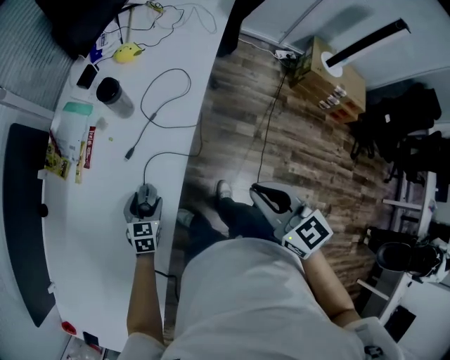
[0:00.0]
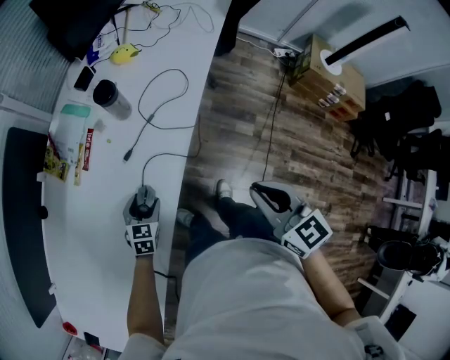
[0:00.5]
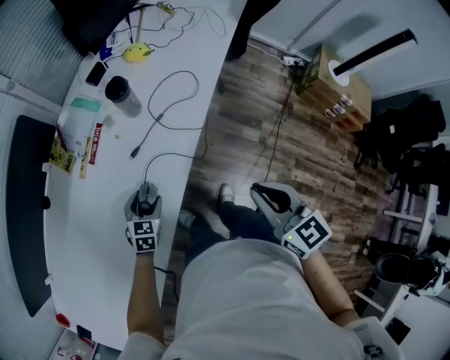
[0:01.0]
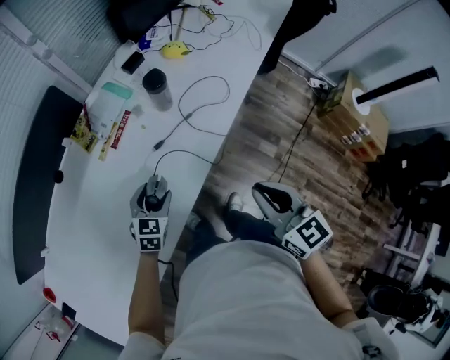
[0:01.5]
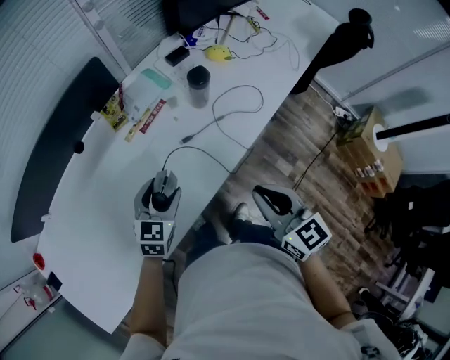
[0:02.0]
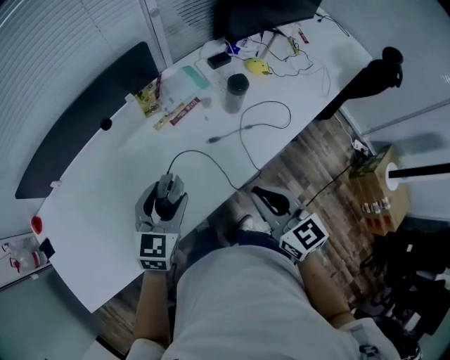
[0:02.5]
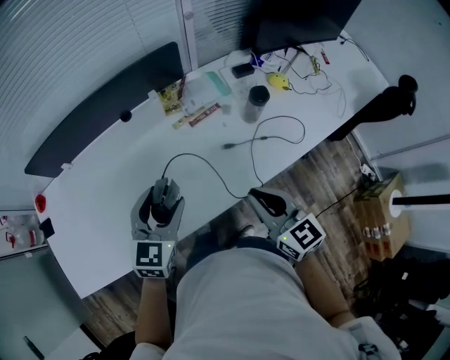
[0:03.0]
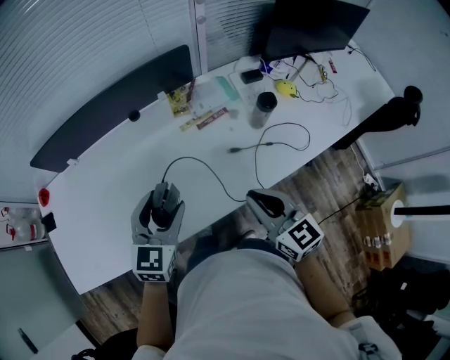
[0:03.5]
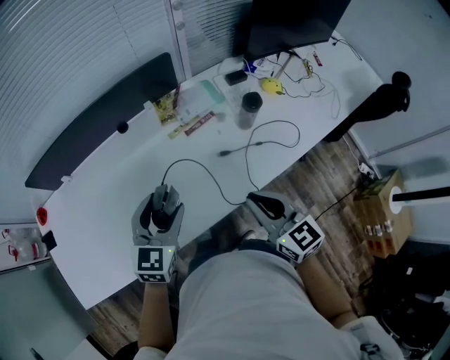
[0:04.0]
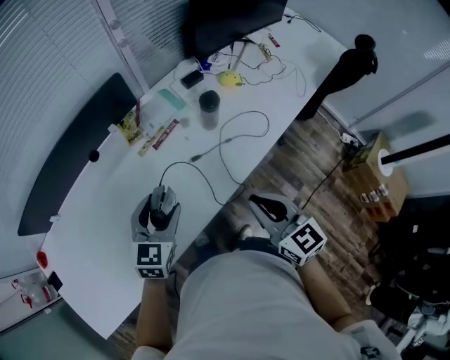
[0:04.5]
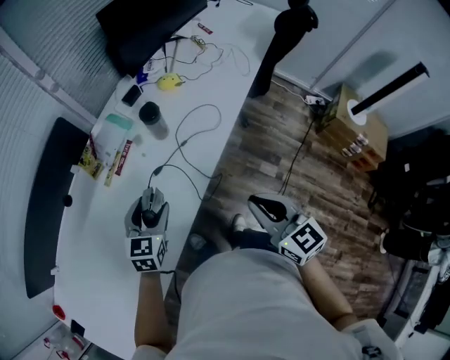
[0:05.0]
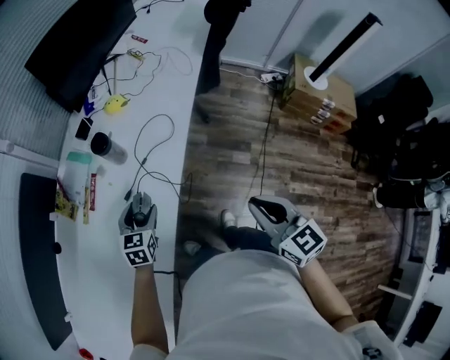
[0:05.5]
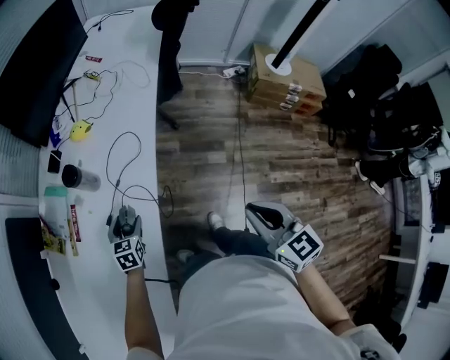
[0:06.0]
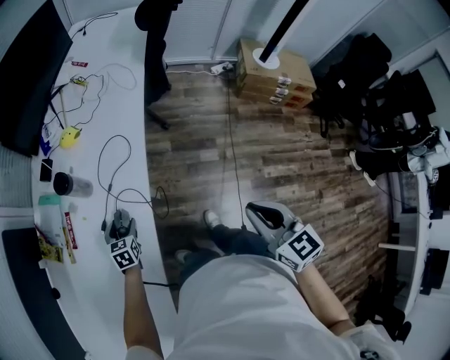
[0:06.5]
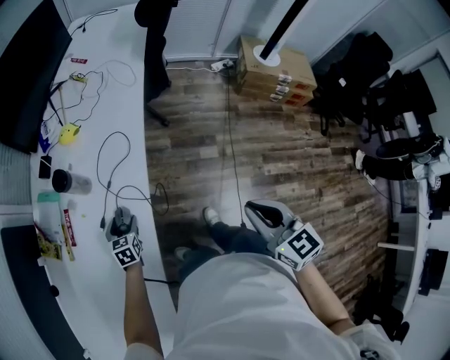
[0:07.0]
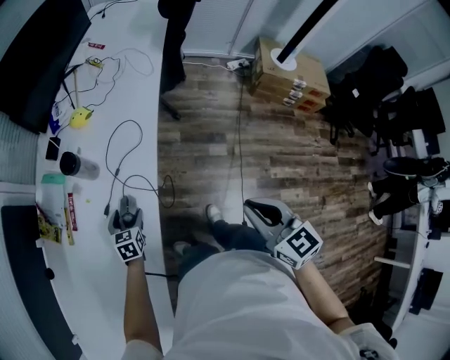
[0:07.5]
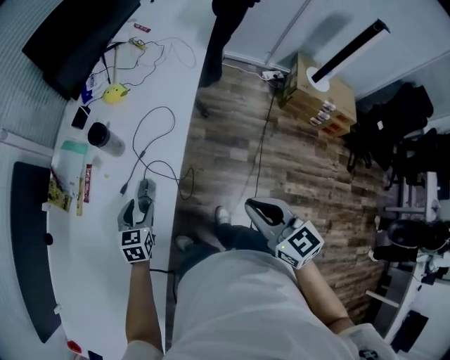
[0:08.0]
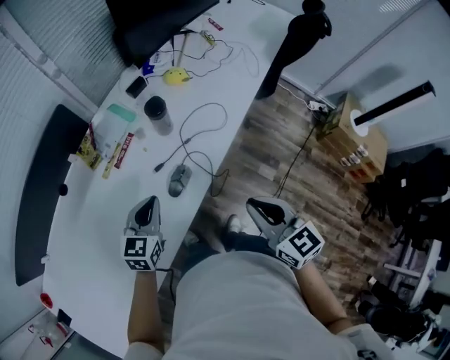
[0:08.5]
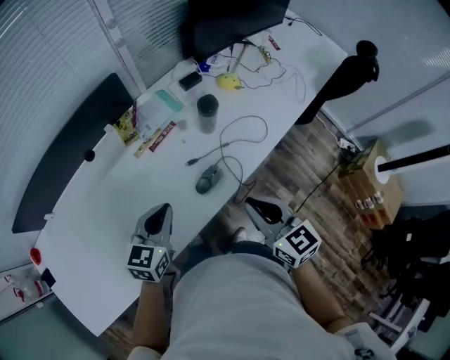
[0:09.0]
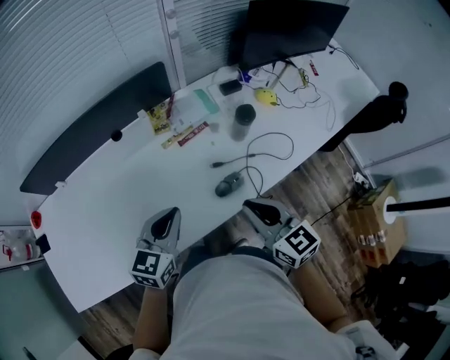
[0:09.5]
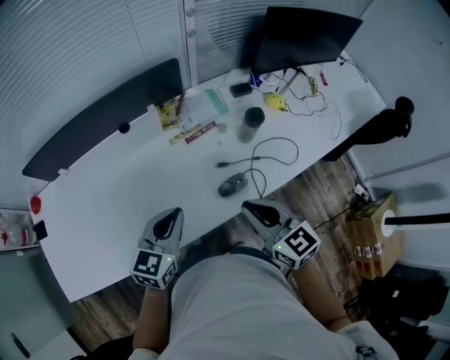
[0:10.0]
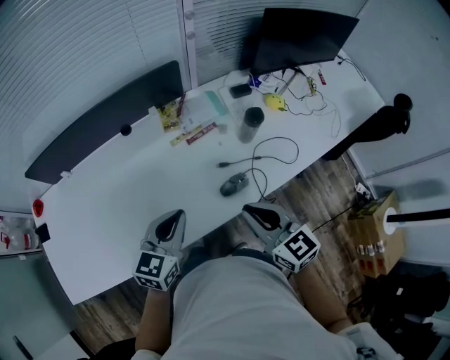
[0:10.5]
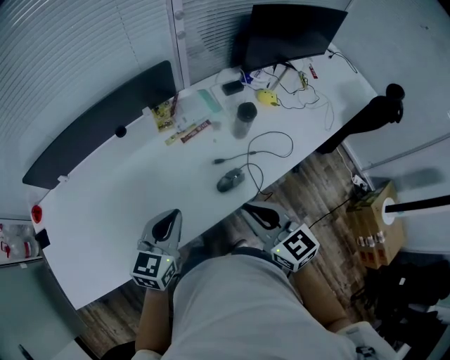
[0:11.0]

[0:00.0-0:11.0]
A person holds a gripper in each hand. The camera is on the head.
0:00.0 to 0:02.0: The right gripper heads to the left and forward, covering roughly 10 cm, and turns by roughly 20 degrees; the left gripper moves upward, approximately 15 cm, and swivels some 20 degrees.
0:02.0 to 0:03.5: The left gripper is displaced upward and to the left by some 15 cm, and changes its angle by some 30 degrees. The right gripper is displaced to the left and forward by approximately 10 cm, and swivels some 20 degrees.
0:03.5 to 0:05.5: The left gripper moves some 30 cm, and swivels about 40 degrees, while the right gripper shifts by roughly 25 cm, and swivels approximately 50 degrees.
0:05.5 to 0:07.5: The left gripper travels downward by some 10 cm.
0:07.5 to 0:09.0: The right gripper moves roughly 25 cm, and swivels some 40 degrees. Meanwhile the left gripper shifts roughly 20 cm upward, turns by some 30 degrees, and closes.
0:09.0 to 0:11.0: The two grippers go about 5 cm to the left.

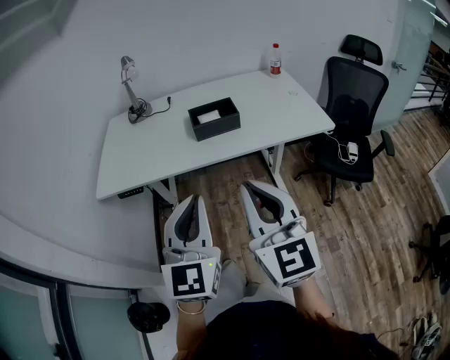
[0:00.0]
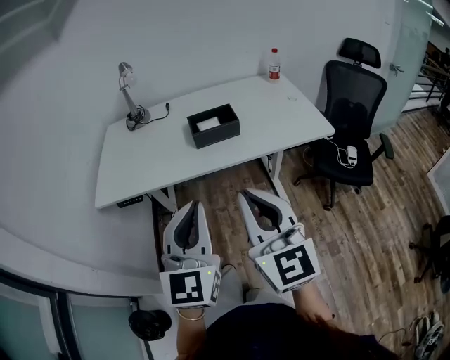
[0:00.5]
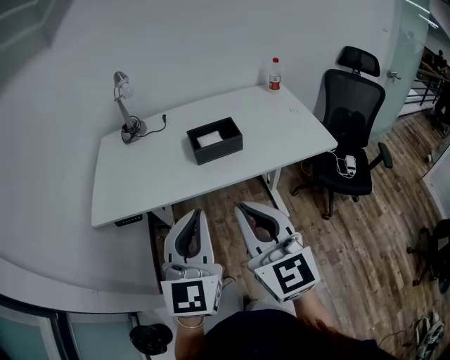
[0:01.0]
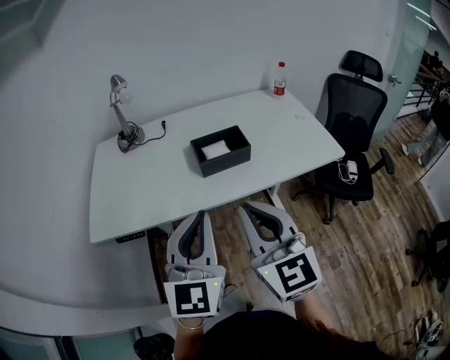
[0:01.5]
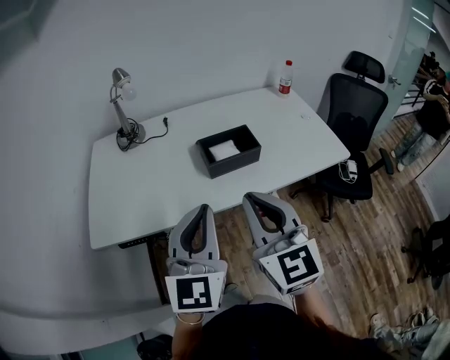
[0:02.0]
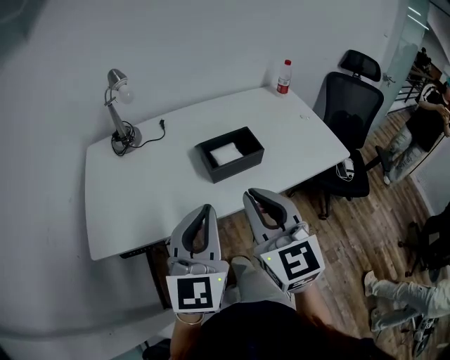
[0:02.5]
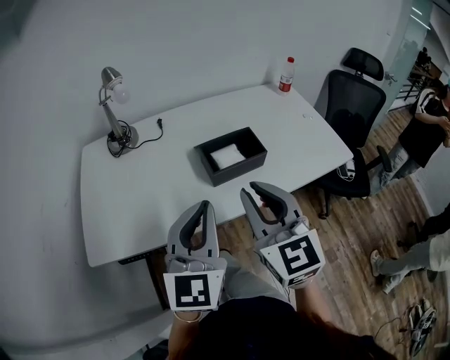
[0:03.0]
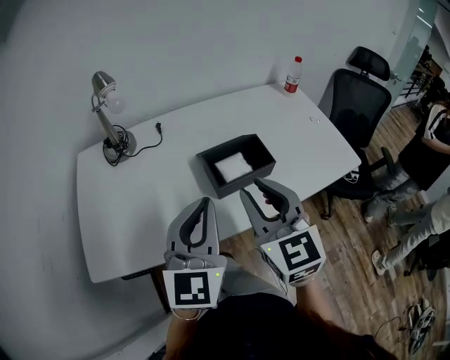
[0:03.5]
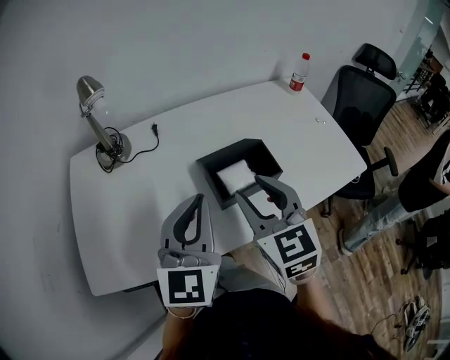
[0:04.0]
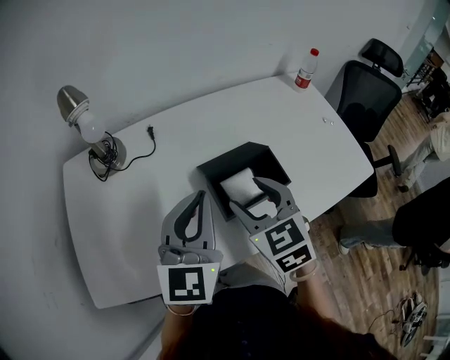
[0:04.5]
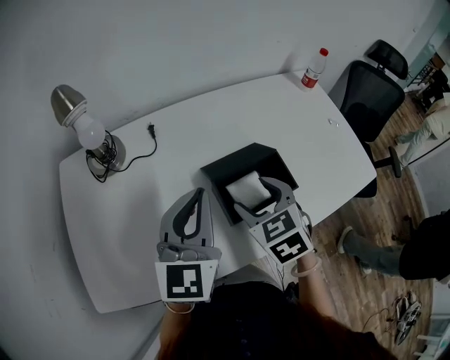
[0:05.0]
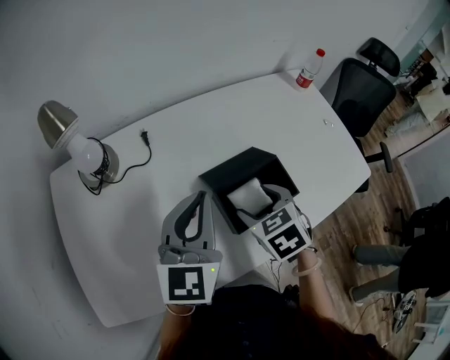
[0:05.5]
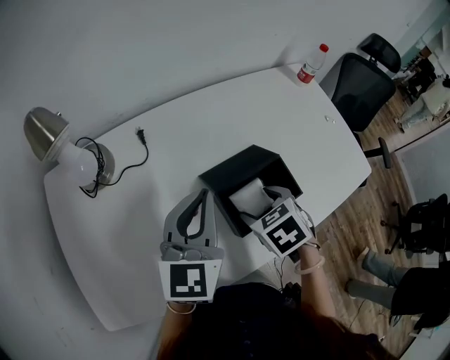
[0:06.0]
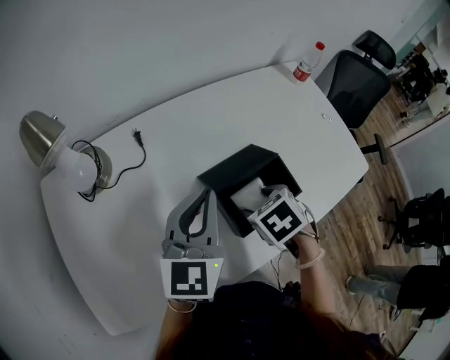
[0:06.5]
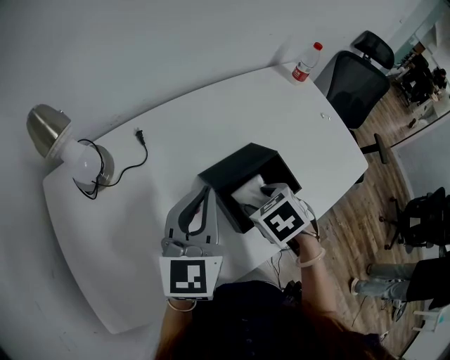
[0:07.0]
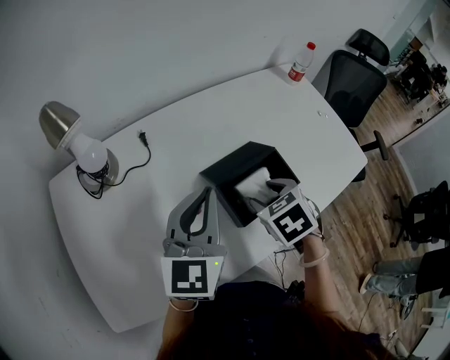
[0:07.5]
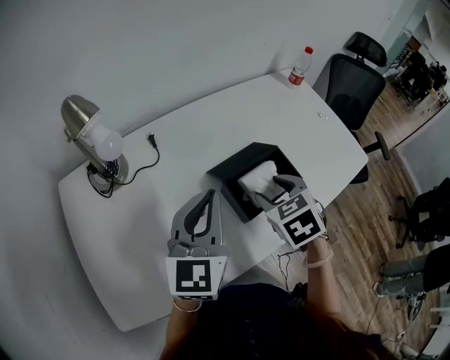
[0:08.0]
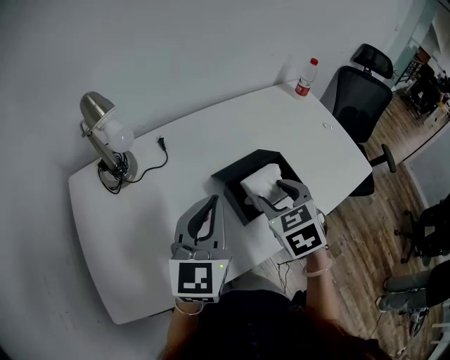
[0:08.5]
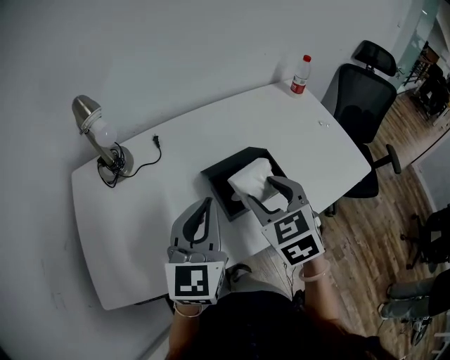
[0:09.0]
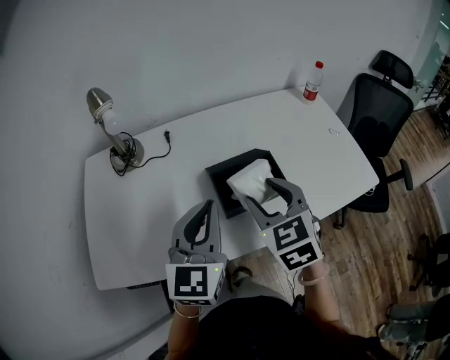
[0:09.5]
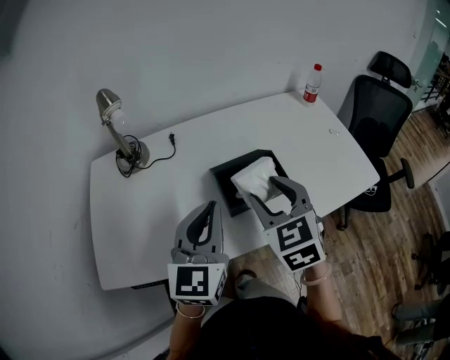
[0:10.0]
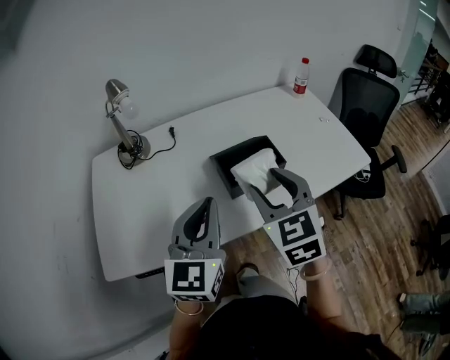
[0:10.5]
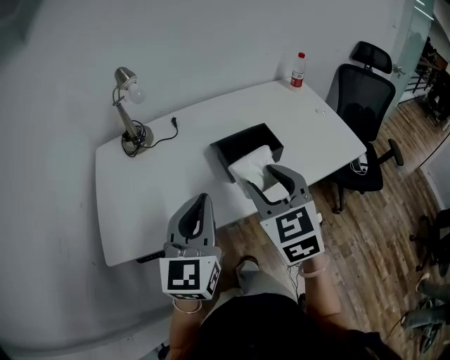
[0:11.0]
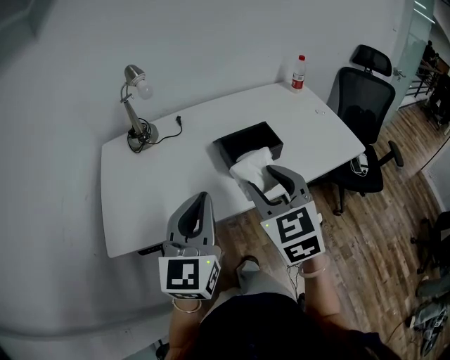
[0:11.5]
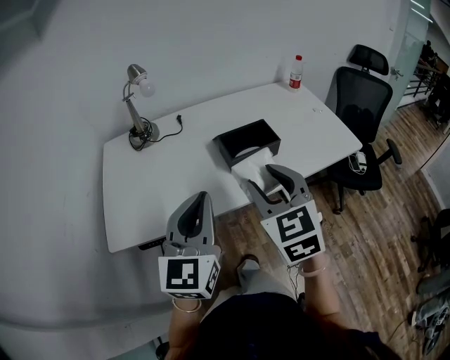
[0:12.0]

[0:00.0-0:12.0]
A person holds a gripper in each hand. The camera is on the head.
0:00.0 to 0:02.0: The left gripper is displaced forward by some 20 cm. The right gripper moves forward and to the left, about 20 cm.
0:02.0 to 0:04.0: The two grippers go about 20 cm forward. The right gripper opens up.
0:04.0 to 0:06.0: The left gripper heads forward, covering some 15 cm. The right gripper shifts some 20 cm downward and forward, points its fingers approximately 50 degrees further downward, and opens its fingers.
0:06.0 to 0:08.0: The right gripper moves upward, approximately 5 cm.
0:08.0 to 0:10.0: The left gripper shifts approximately 10 cm backward and to the right, while the right gripper goes approximately 10 cm upward and backward, and turns by roughly 30 degrees.
0:10.0 to 0:12.0: The grippers both shift backward by approximately 15 cm.

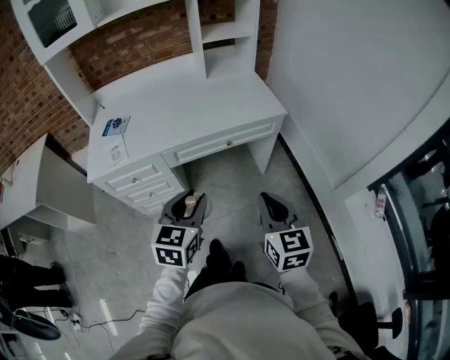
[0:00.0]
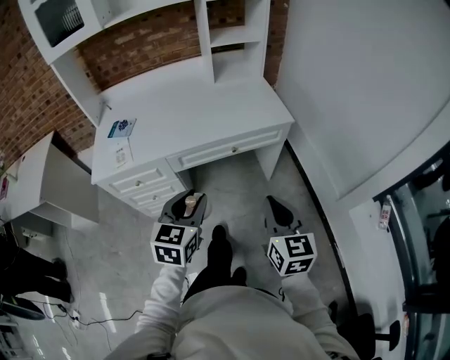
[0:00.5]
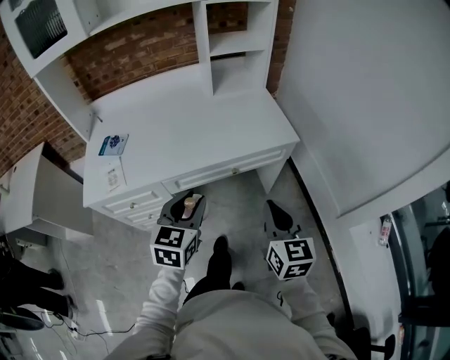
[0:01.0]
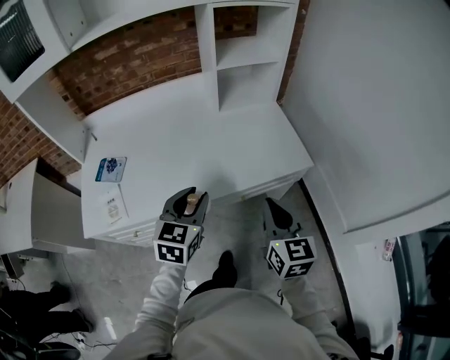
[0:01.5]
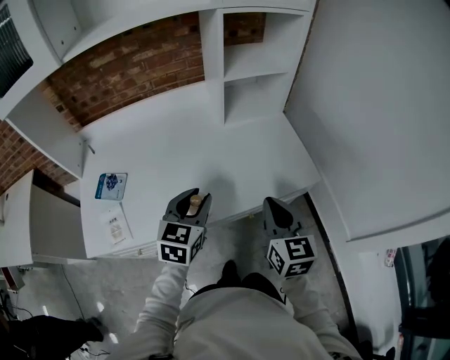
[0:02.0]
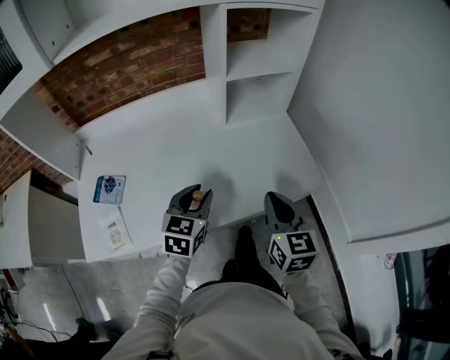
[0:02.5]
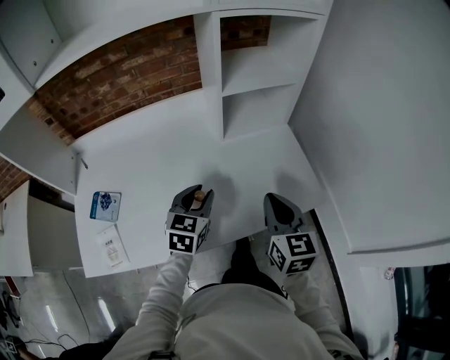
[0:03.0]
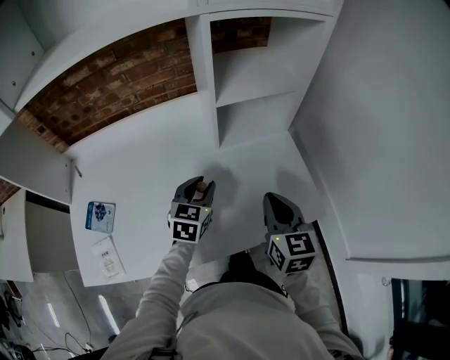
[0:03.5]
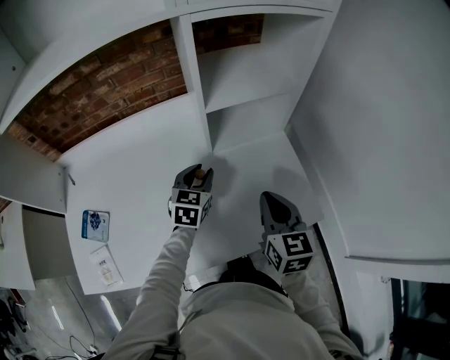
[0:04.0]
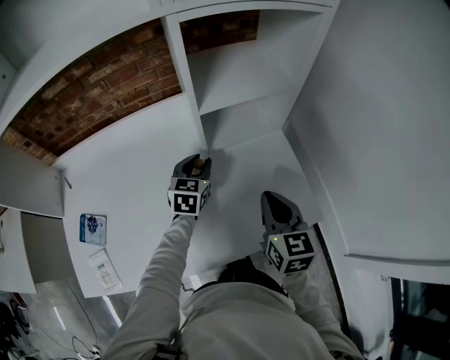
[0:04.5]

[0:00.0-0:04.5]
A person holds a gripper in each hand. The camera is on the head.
0:00.0 to 0:02.0: The grippers both shift forward by roughly 35 cm.
0:02.0 to 0:04.5: The left gripper moves forward, about 30 cm. Meanwhile the right gripper goes approximately 20 cm forward.
